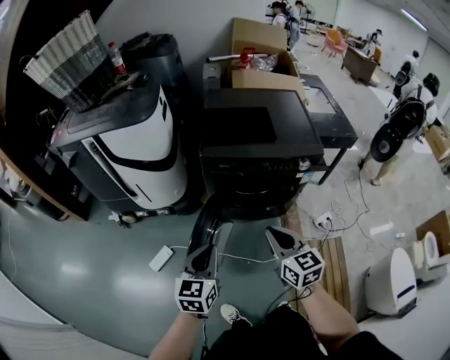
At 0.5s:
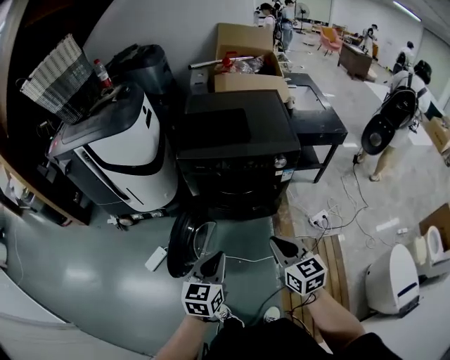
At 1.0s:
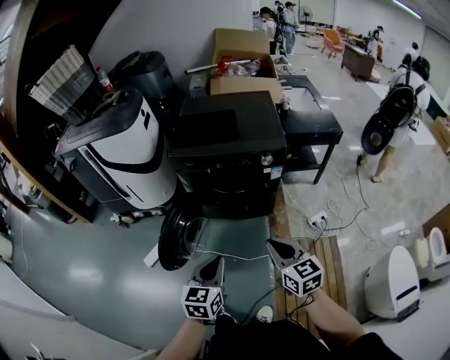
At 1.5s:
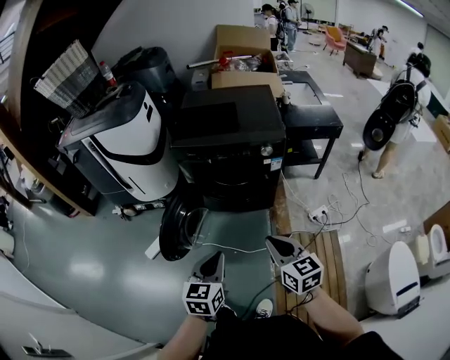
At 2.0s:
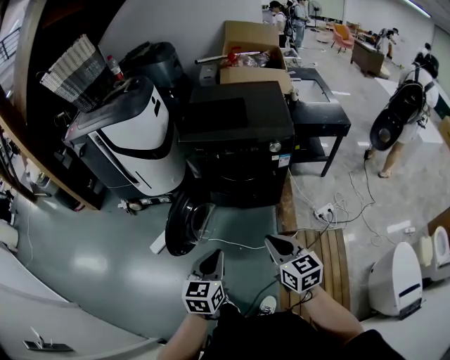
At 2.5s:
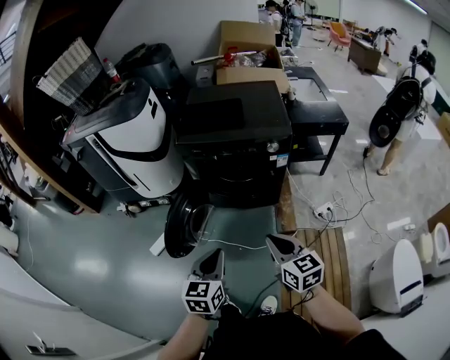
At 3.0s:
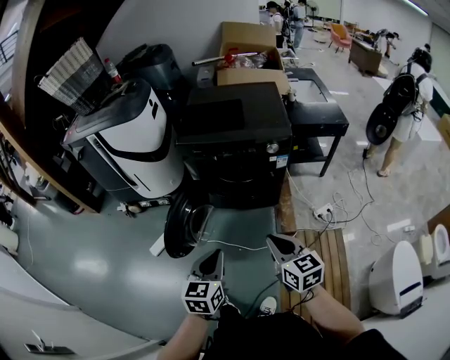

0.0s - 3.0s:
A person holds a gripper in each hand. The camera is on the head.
0.0s - 1.5s: Both grippers travel together to the right and backward, about 25 cm.
1.5s - 3.0s: The grippers move only a little.

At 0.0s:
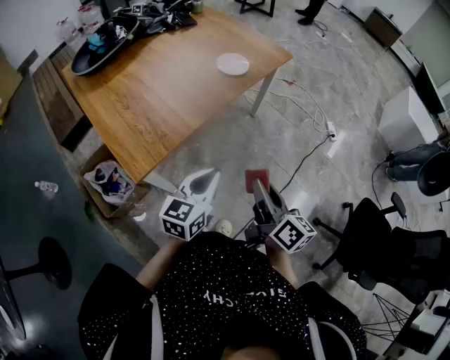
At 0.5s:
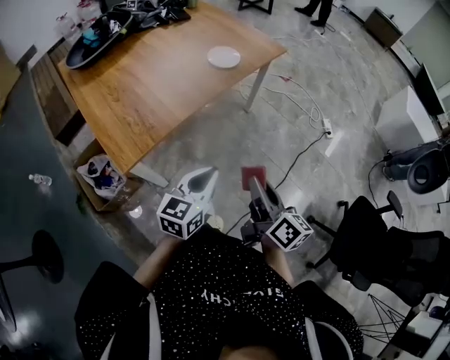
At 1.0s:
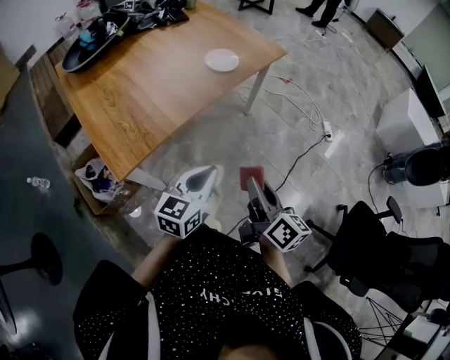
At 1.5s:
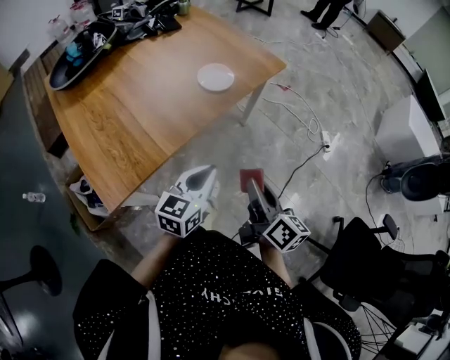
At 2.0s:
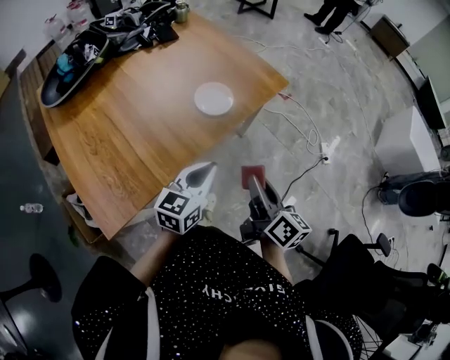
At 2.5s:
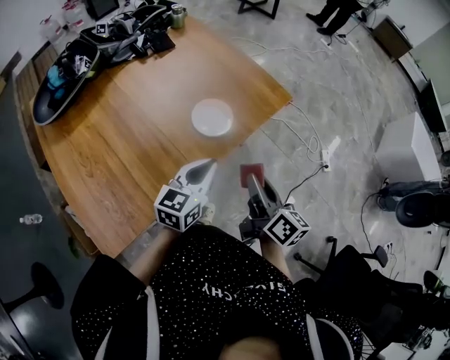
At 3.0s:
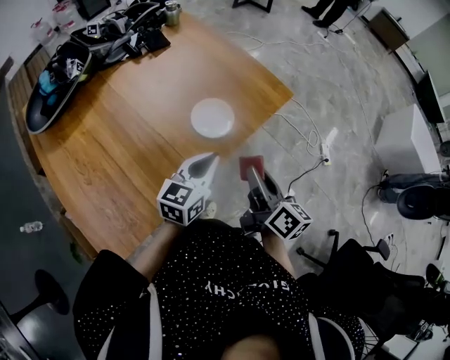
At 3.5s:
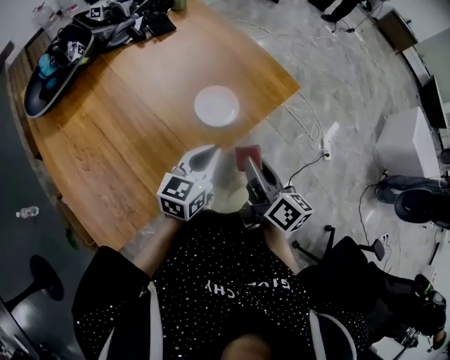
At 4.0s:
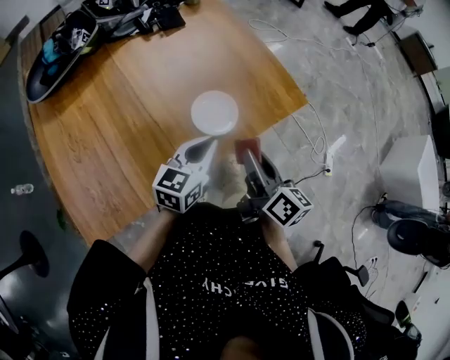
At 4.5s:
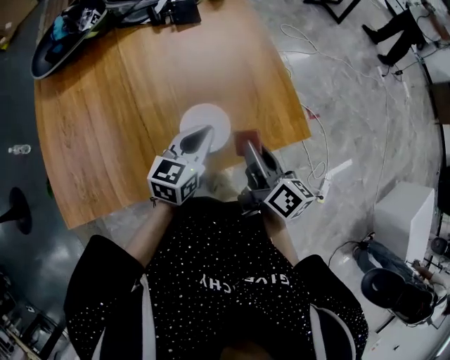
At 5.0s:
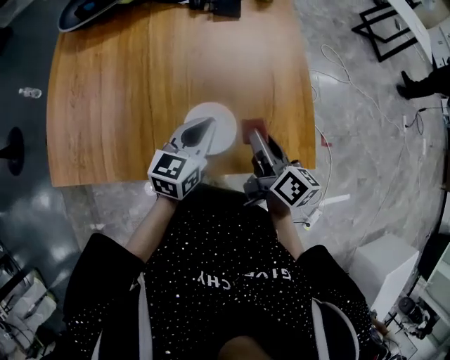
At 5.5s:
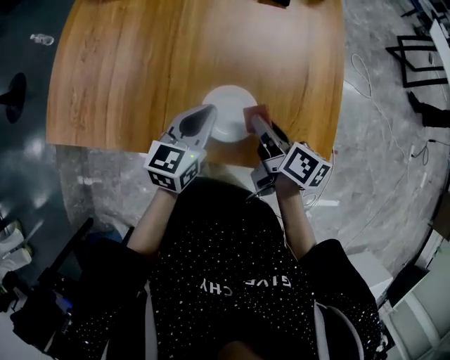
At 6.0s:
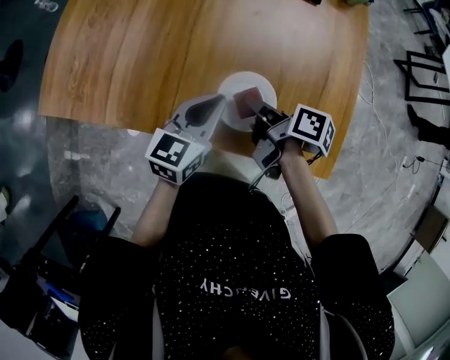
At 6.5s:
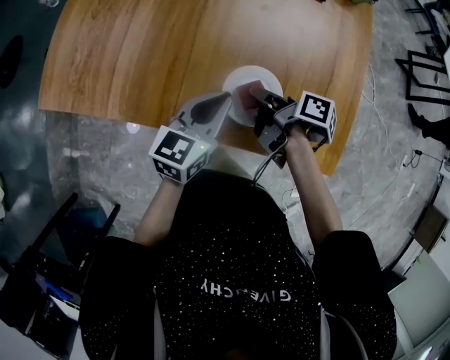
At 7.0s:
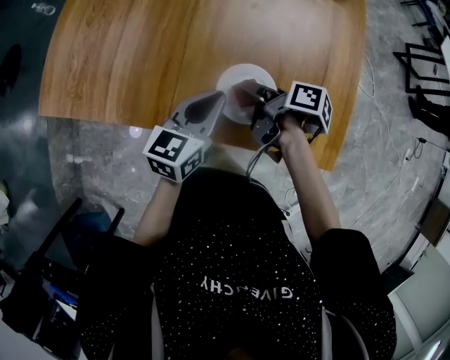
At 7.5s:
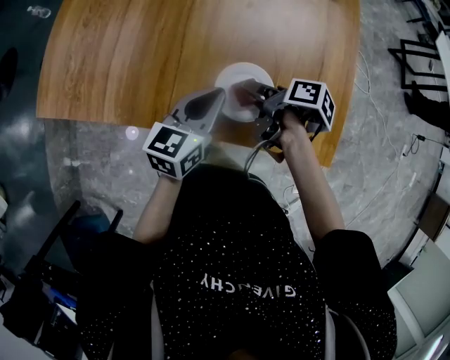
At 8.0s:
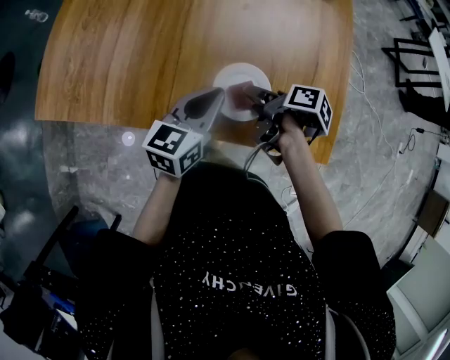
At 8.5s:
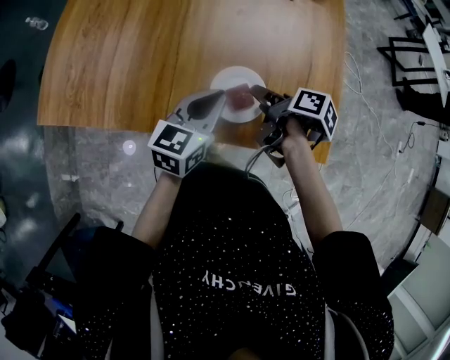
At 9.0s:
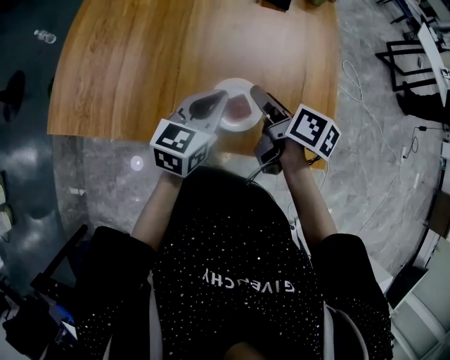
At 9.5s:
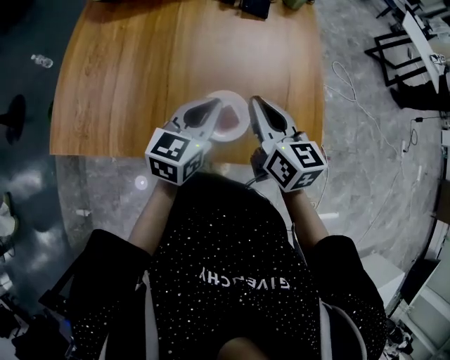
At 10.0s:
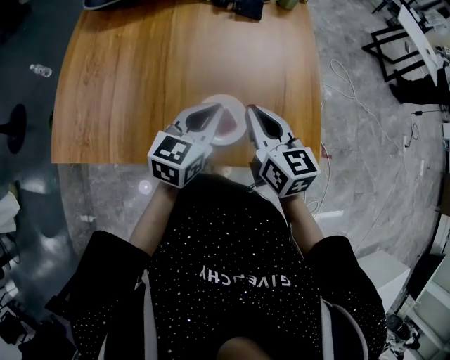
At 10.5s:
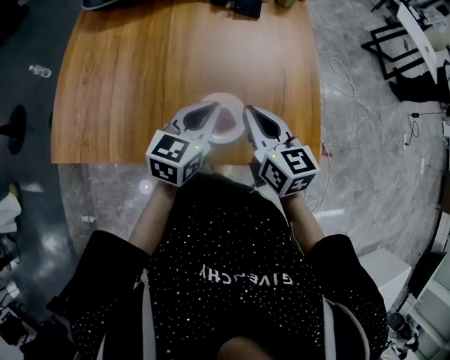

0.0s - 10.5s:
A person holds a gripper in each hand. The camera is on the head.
0.0s - 2.0s: Both grippers travel together forward, roughly 25 cm.
2.0s - 4.0s: Both grippers travel together forward, roughly 20 cm.
4.0s - 6.5s: The left gripper ends up about 10 cm from where it was, and swivels about 50 degrees. Meanwhile the right gripper shifts by about 25 cm, and turns by approximately 70 degrees.
6.5s - 8.5s: The right gripper opens.
8.5s - 10.5s: The right gripper shifts roughly 15 cm upward, twists approximately 60 degrees counterclockwise, seen from behind, and closes its fingers, while the left gripper shifts approximately 5 cm upward.

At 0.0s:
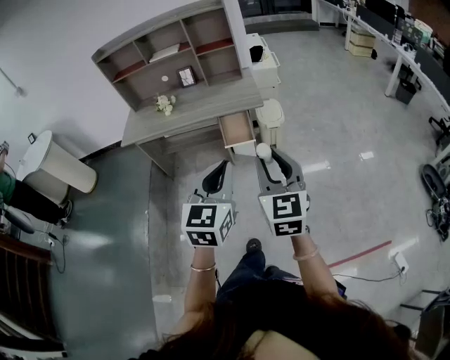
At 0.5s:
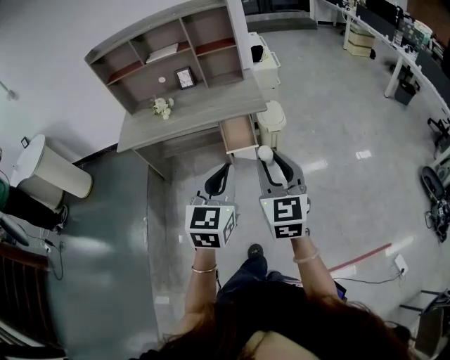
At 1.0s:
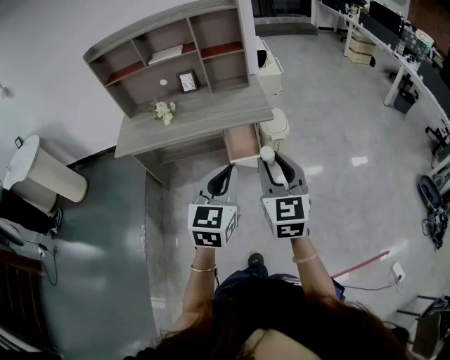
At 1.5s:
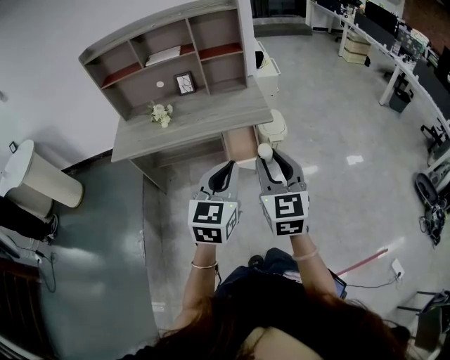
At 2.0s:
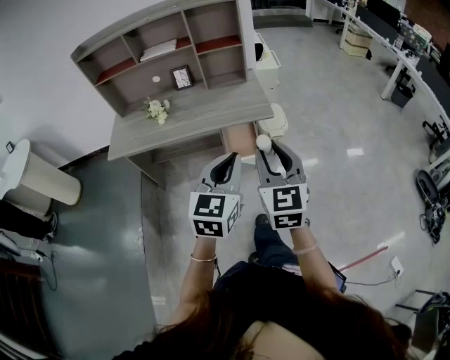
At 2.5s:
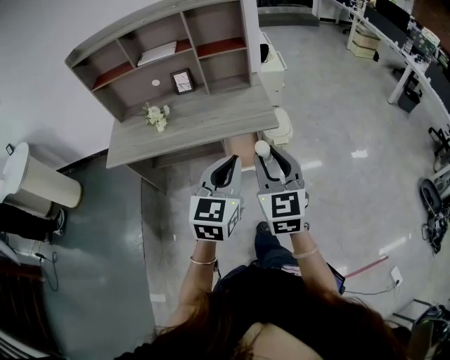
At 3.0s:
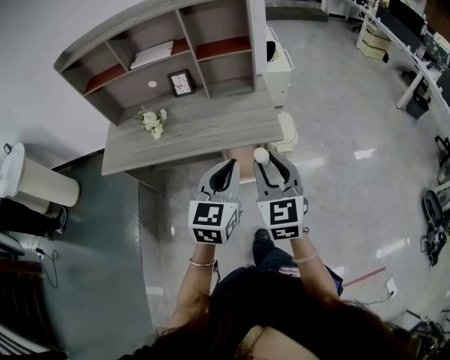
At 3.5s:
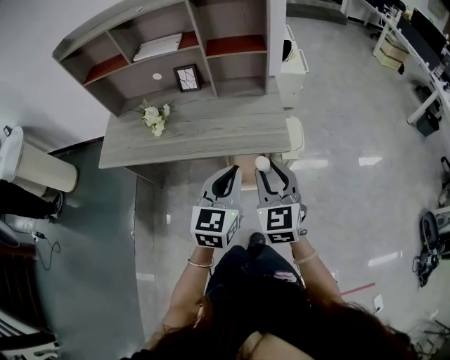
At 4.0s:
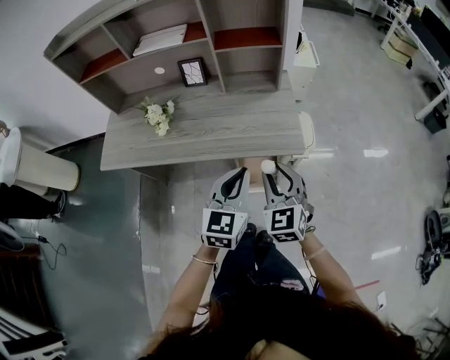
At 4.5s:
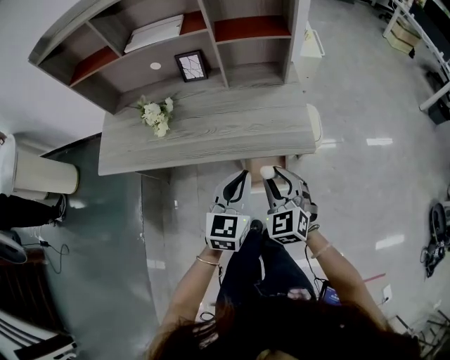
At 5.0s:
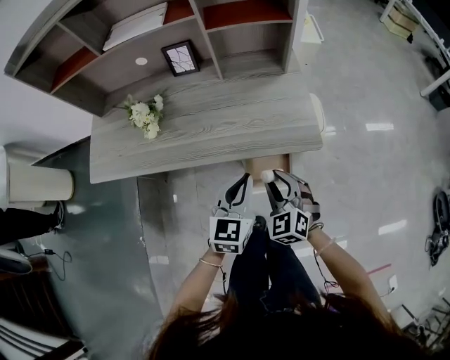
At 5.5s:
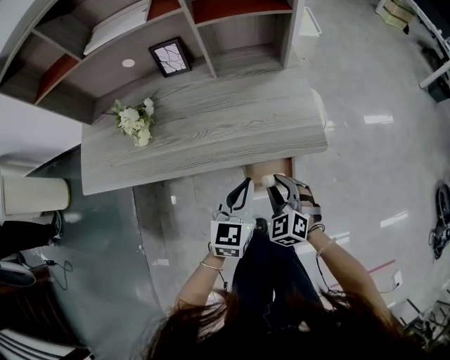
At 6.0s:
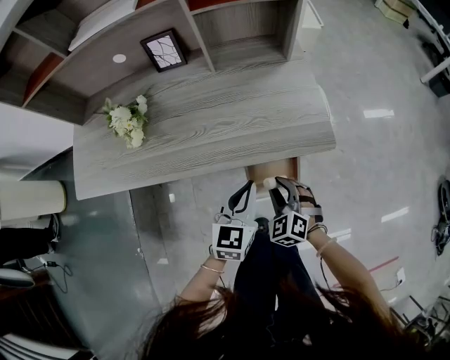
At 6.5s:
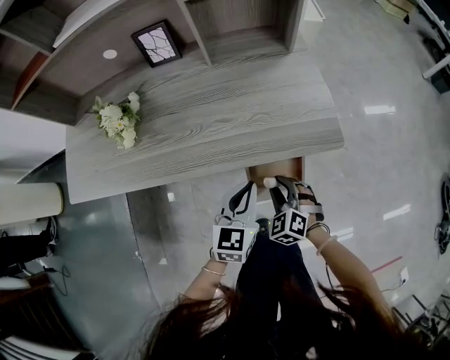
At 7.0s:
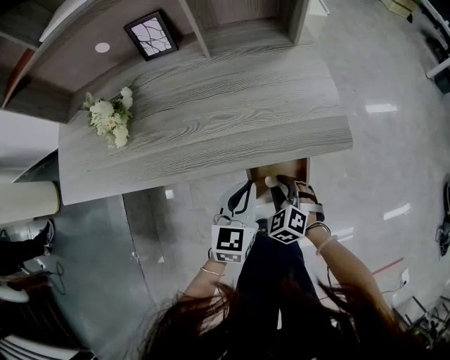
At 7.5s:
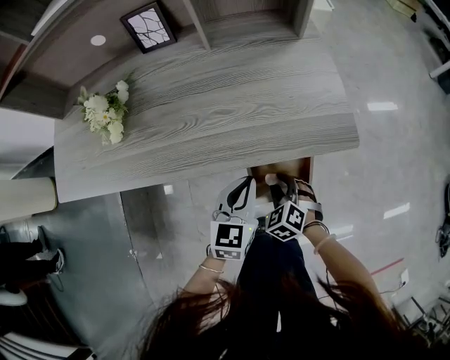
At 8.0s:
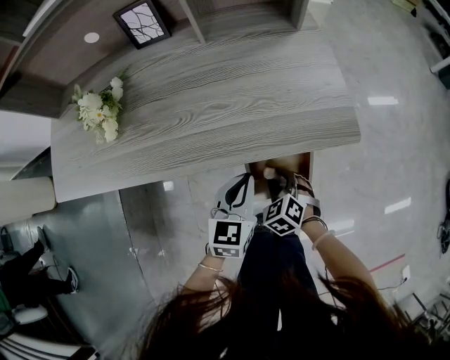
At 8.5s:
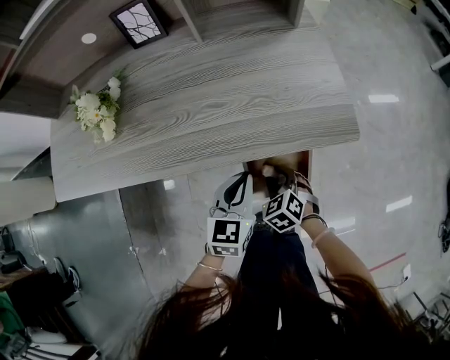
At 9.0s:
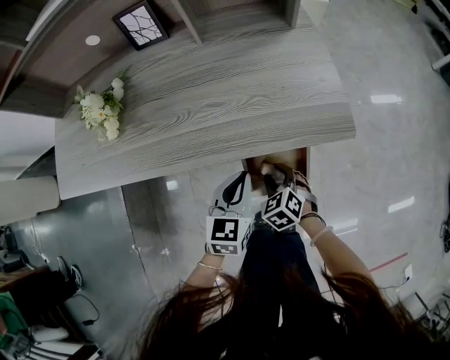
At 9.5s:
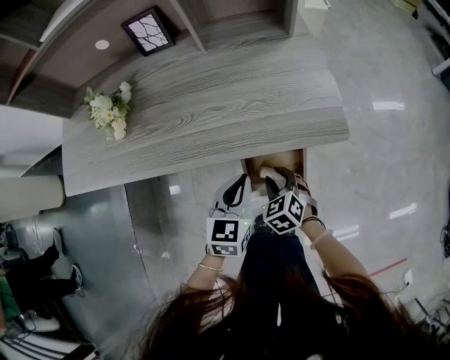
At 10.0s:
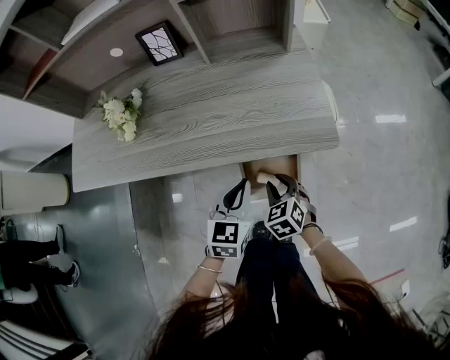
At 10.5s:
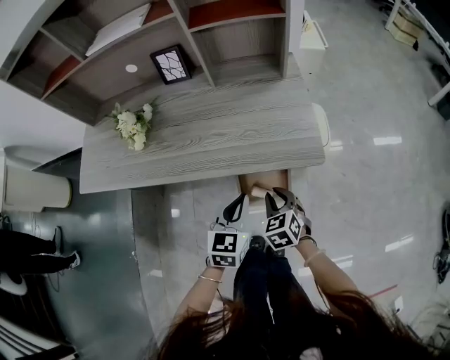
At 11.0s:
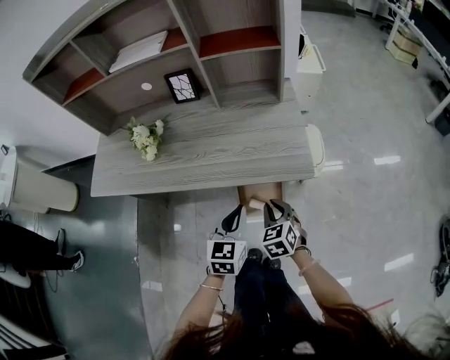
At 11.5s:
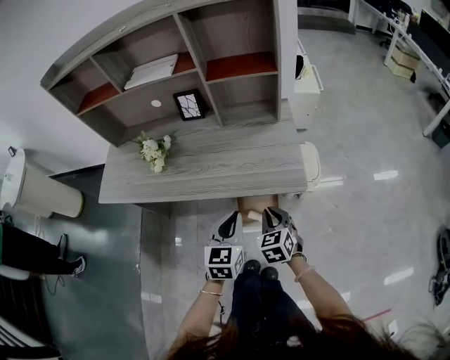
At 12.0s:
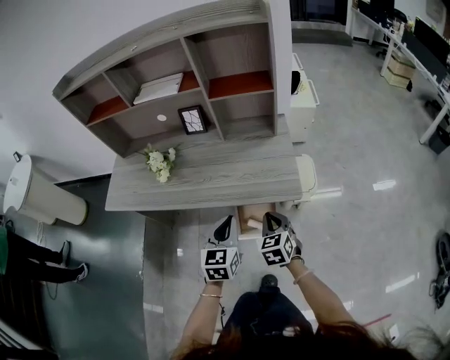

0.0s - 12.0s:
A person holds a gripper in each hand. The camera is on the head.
0.0s - 2.0s: The grippers both shift forward and to the left by approximately 20 cm.
2.0s - 4.0s: The two grippers go roughly 30 cm forward and downward. The right gripper rotates approximately 20 degrees.
4.0s - 6.0s: Both grippers travel together downward, approximately 25 cm. The right gripper changes its angle by roughly 30 degrees.
6.0s - 8.0s: The two grippers go some 15 cm downward.
8.0s - 10.0s: Both grippers travel together upward, some 5 cm.
10.0s - 12.0s: The two grippers go some 20 cm upward. The right gripper closes.

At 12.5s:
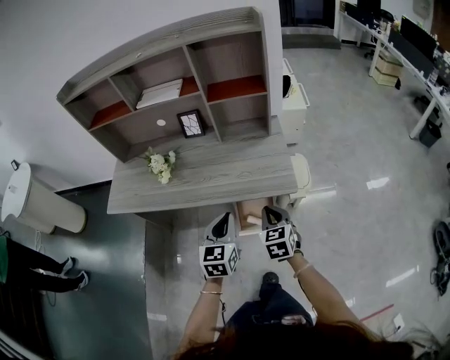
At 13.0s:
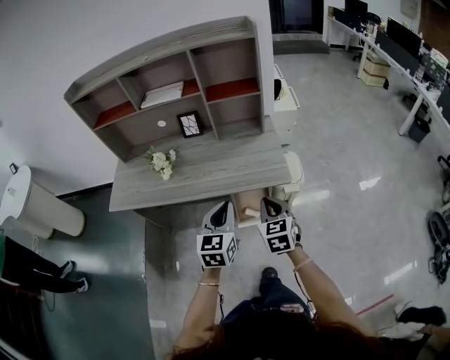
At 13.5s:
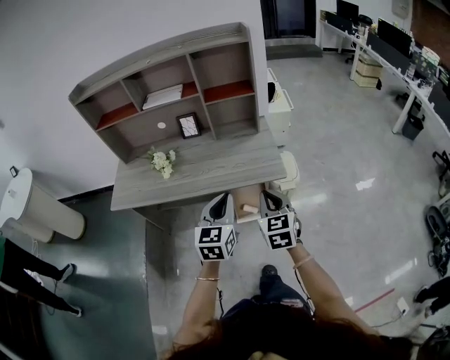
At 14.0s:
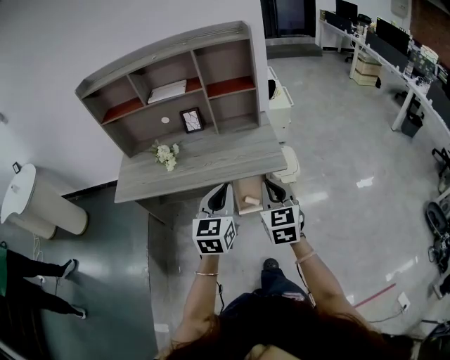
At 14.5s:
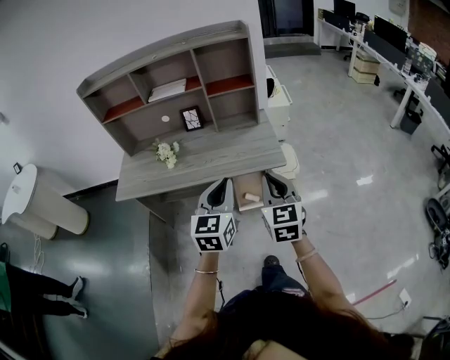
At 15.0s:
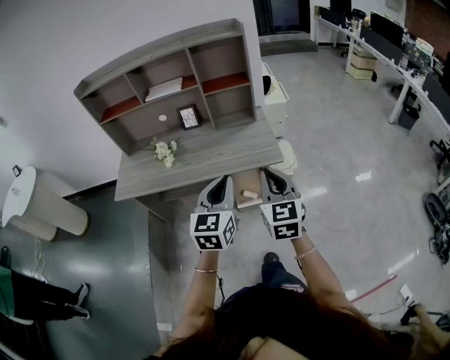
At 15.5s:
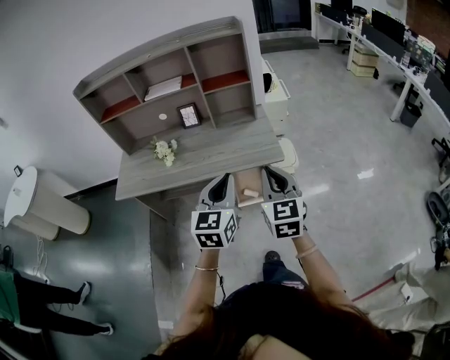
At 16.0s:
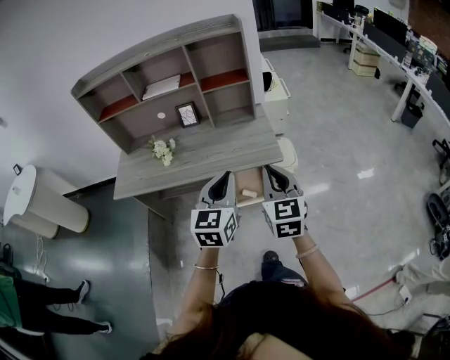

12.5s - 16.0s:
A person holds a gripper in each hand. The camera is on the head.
12.5s - 14.5s: The two grippers go approximately 25 cm upward and backward. The right gripper turns by approximately 20 degrees.
14.5s - 16.0s: The grippers make only small movements.
